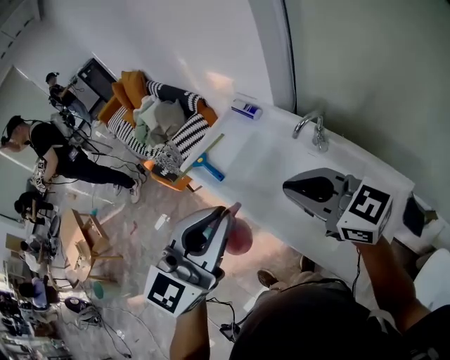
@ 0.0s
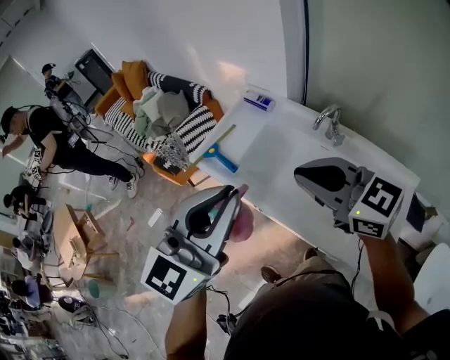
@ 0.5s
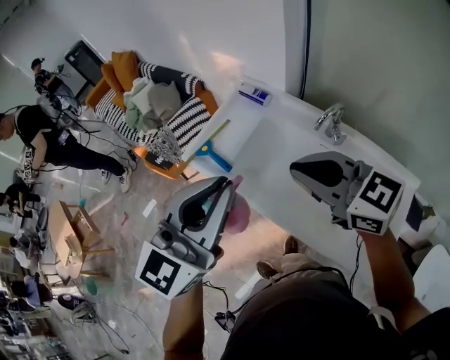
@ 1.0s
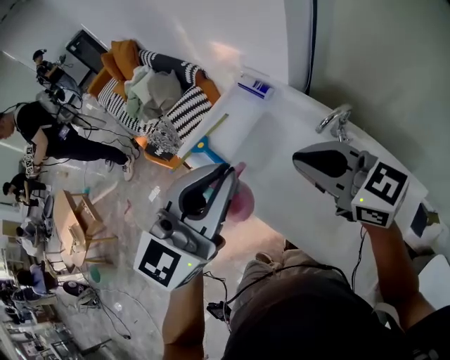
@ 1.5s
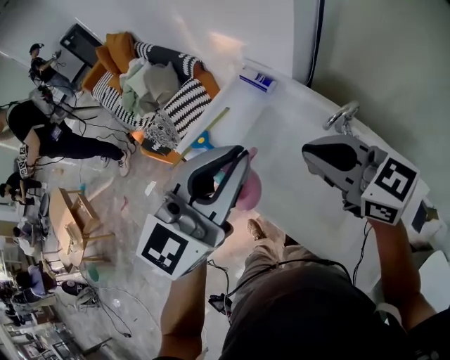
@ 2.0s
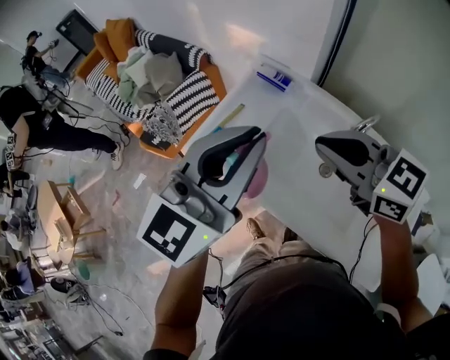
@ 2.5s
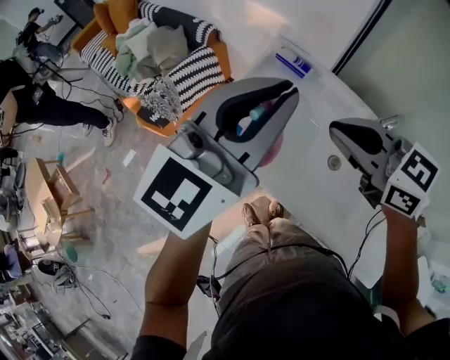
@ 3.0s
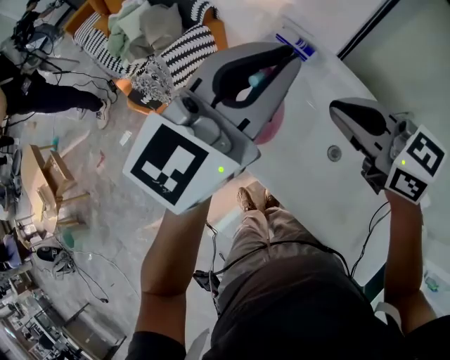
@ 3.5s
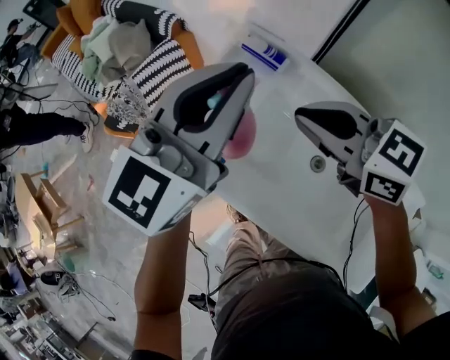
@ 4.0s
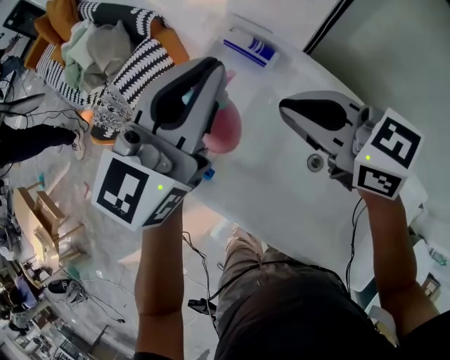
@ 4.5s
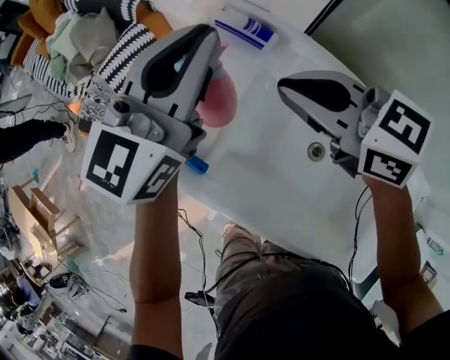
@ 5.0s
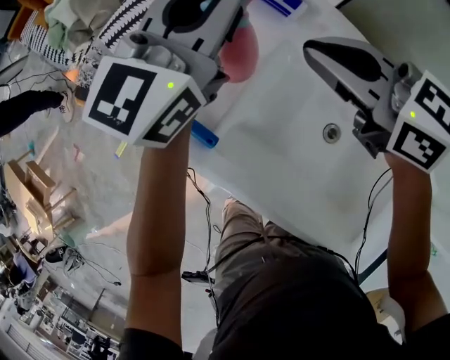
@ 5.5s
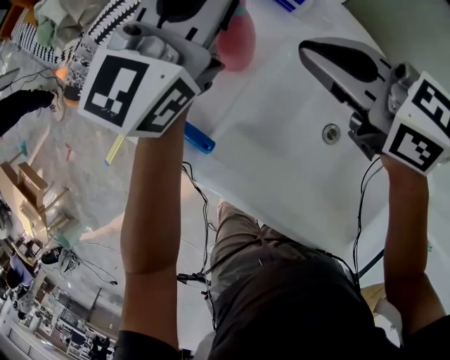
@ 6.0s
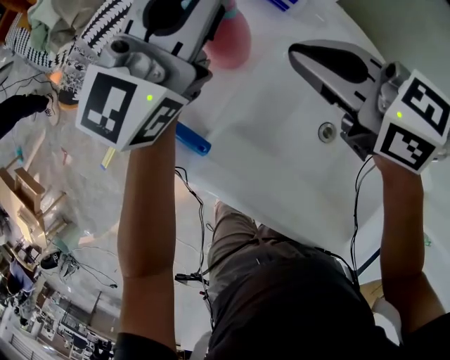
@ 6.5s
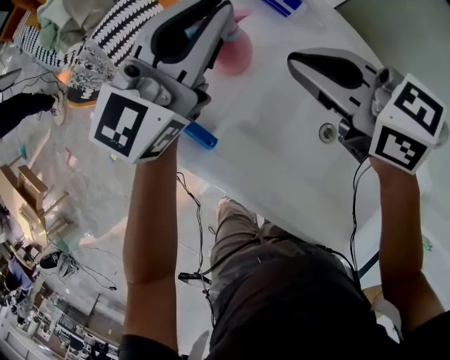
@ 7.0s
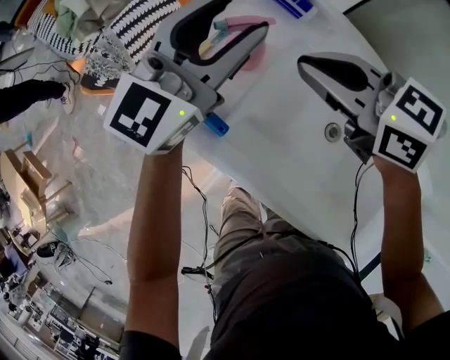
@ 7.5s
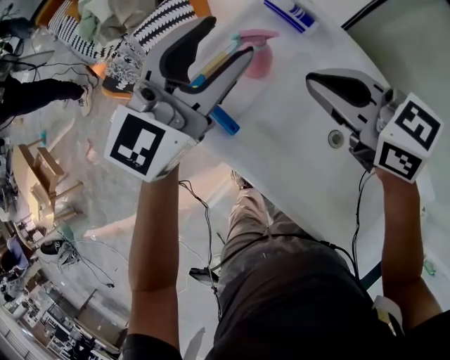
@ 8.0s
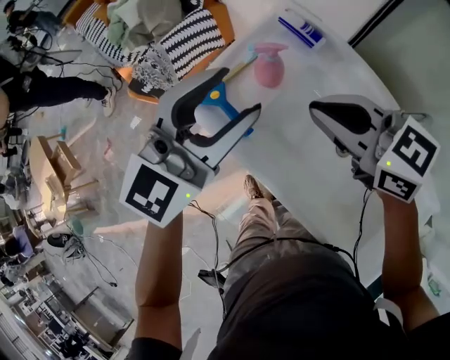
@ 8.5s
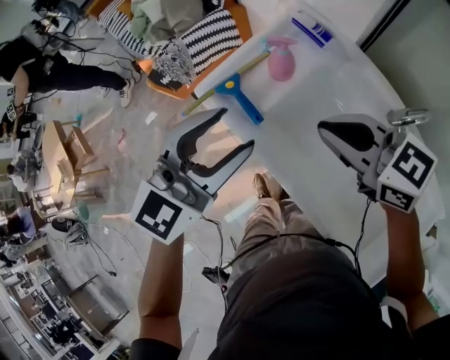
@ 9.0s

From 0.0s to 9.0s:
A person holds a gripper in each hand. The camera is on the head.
From 0.0s to 2.0s: The two grippers go about 15 cm forward.
From 2.0s to 4.5s: Both grippers move forward and downward, approximately 25 cm.
From 4.5s to 7.0s: The left gripper travels downward and forward by some 10 cm; the right gripper is displaced downward by approximately 10 cm.
From 7.0s to 9.0s: The left gripper shifts about 25 cm backward, to the left and upward, turns by roughly 20 degrees, and opens its fingers. Meanwhile the right gripper moves backward and upward, approximately 20 cm.

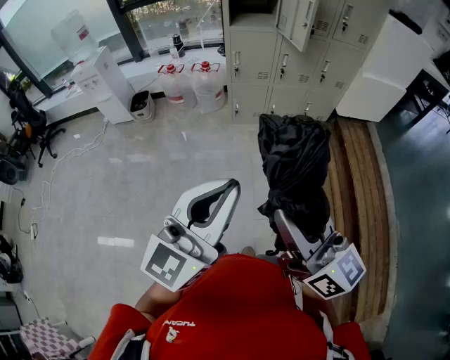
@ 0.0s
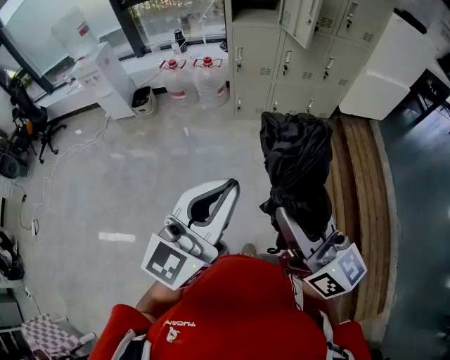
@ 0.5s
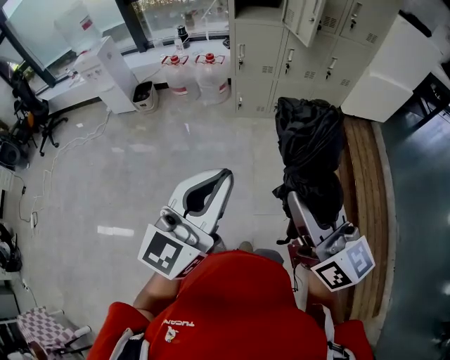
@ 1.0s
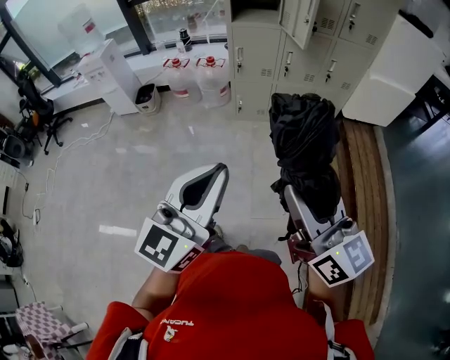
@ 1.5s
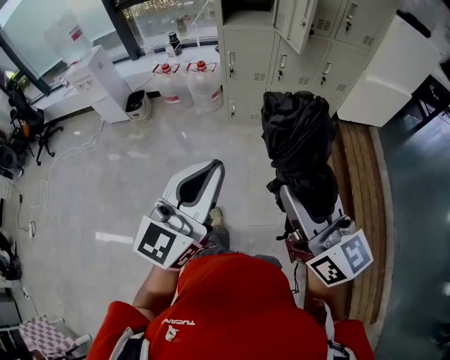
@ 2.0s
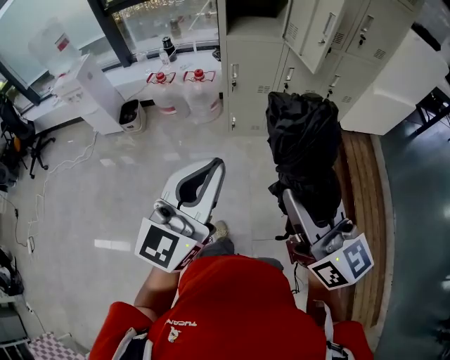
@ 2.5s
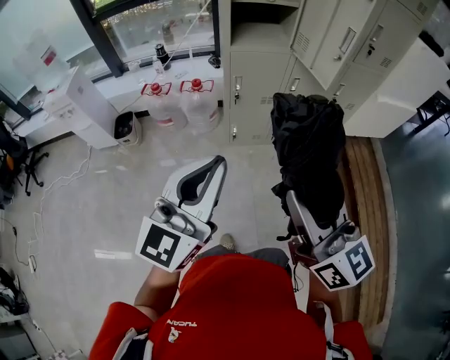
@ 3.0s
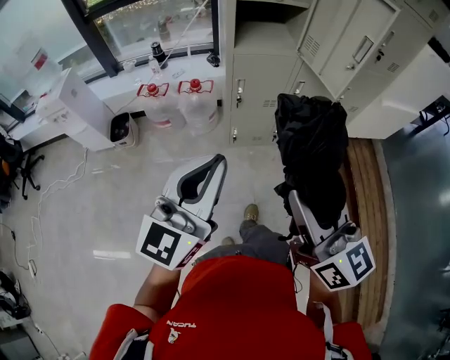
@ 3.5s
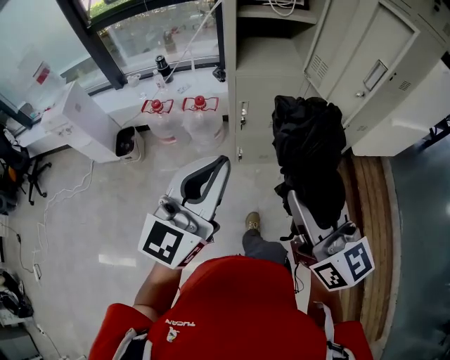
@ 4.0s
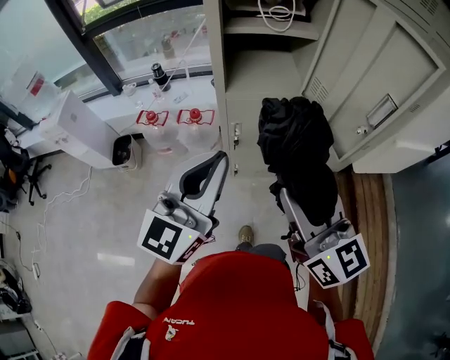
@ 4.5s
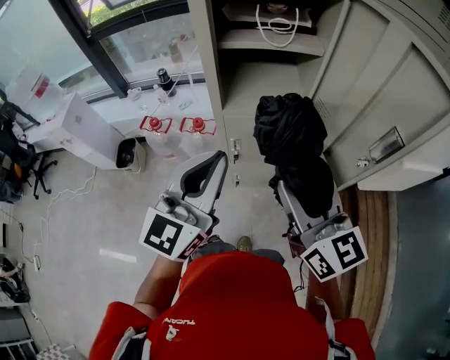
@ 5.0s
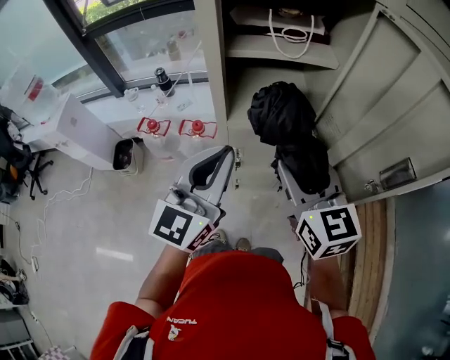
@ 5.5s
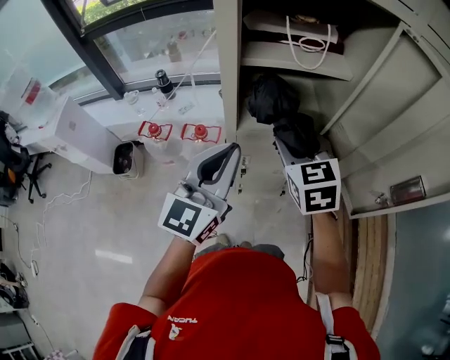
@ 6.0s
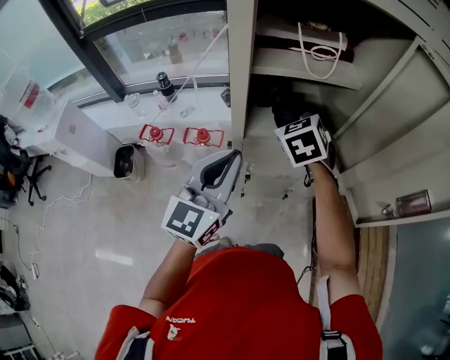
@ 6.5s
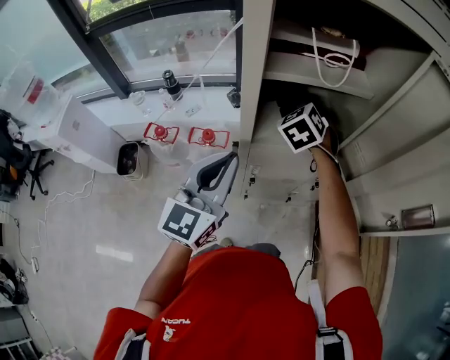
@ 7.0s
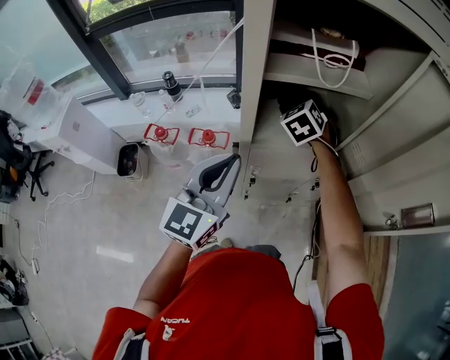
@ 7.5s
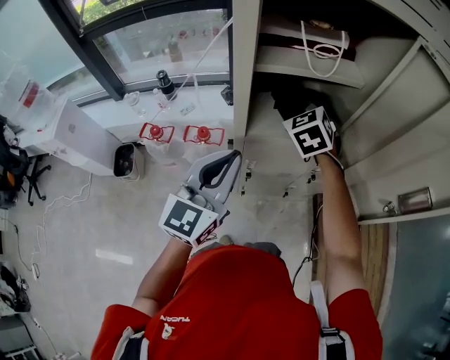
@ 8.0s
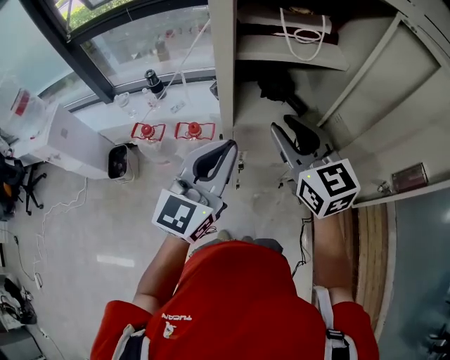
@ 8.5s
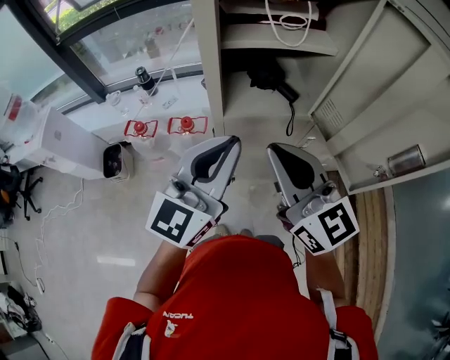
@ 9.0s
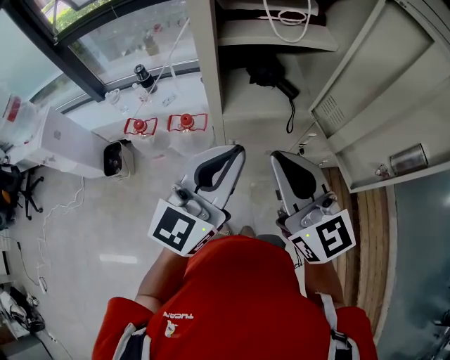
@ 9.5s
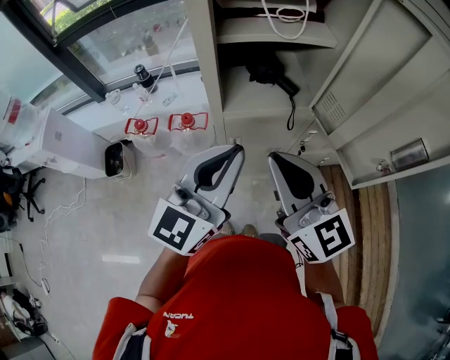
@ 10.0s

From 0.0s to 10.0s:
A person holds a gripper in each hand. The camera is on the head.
From 0.0s to 2.0s: The left gripper goes about 10 cm forward; the right gripper moves forward and to the right, about 10 cm.
From 2.0s to 4.0s: The grippers both shift forward by about 35 cm.
From 4.0s to 6.0s: Both grippers travel together forward, roughly 35 cm. The right gripper tips its fingers downward by roughly 30 degrees.
From 6.0s to 8.0s: The right gripper shifts some 15 cm forward, and turns by some 20 degrees.
From 8.0s to 10.0s: The right gripper is displaced backward by roughly 25 cm, tilts its fingers approximately 30 degrees upward, and closes. Meanwhile the left gripper moves backward and to the right, roughly 10 cm.

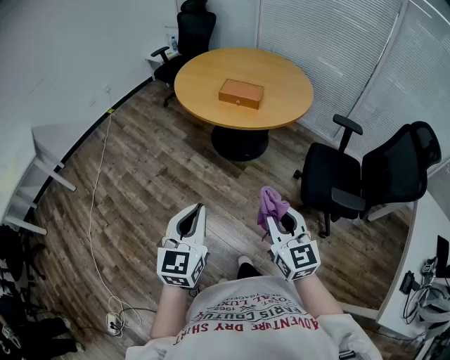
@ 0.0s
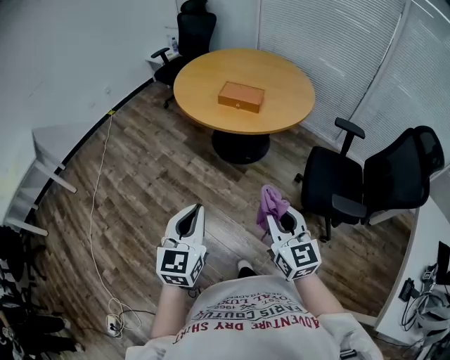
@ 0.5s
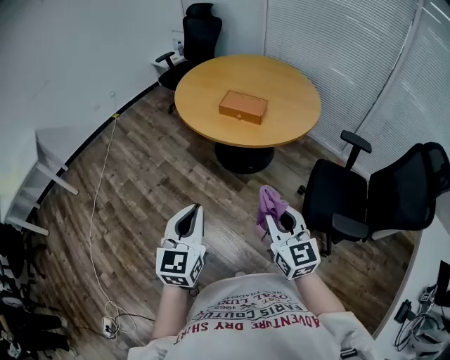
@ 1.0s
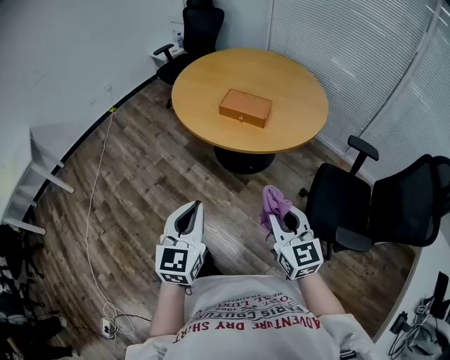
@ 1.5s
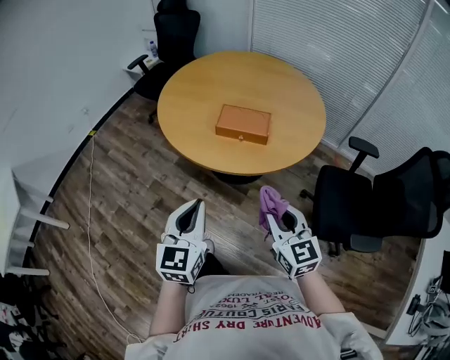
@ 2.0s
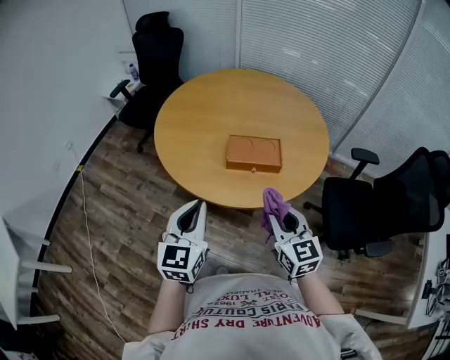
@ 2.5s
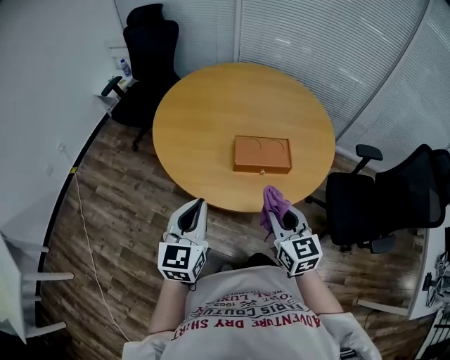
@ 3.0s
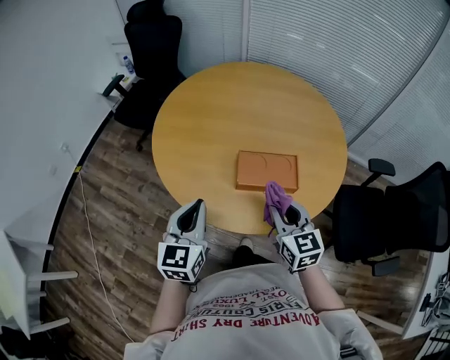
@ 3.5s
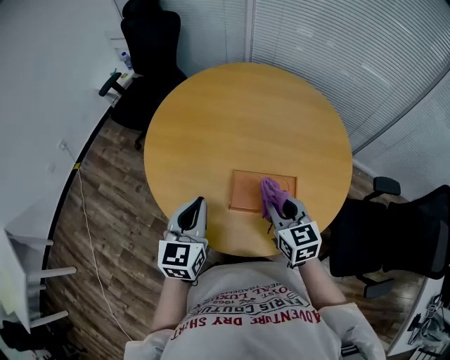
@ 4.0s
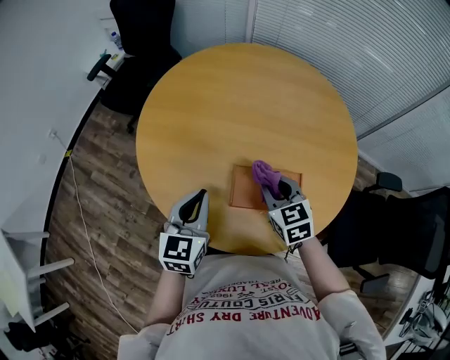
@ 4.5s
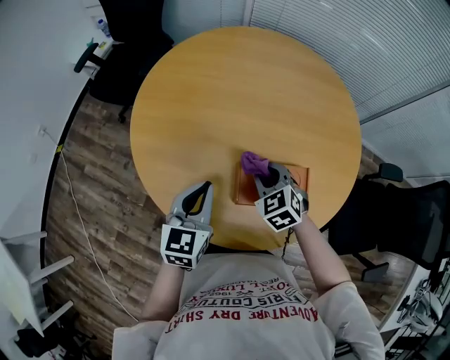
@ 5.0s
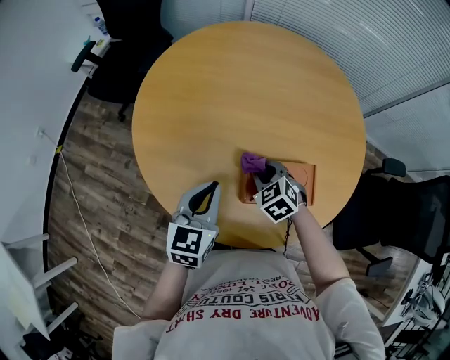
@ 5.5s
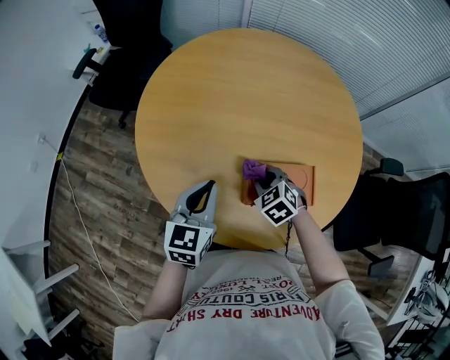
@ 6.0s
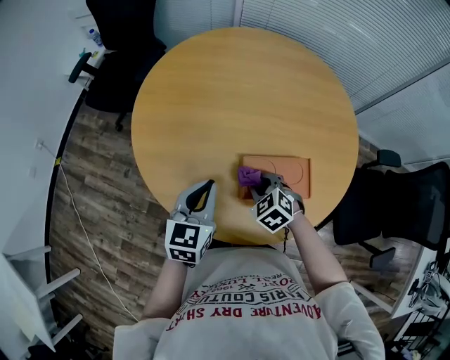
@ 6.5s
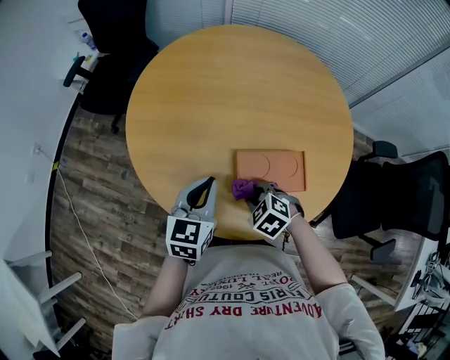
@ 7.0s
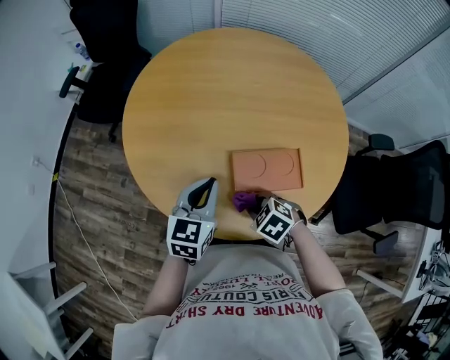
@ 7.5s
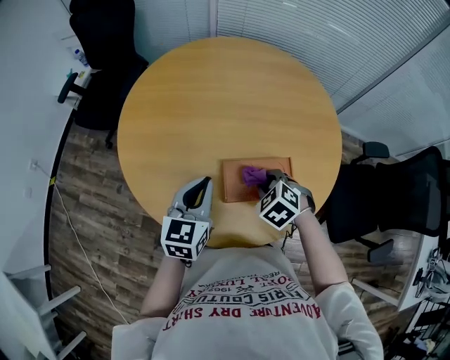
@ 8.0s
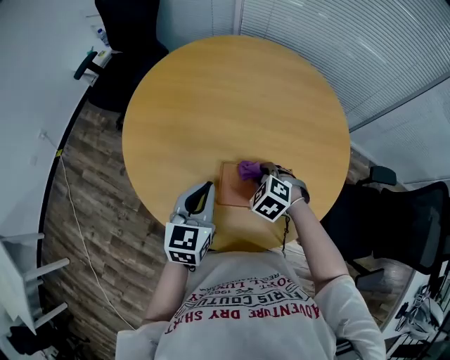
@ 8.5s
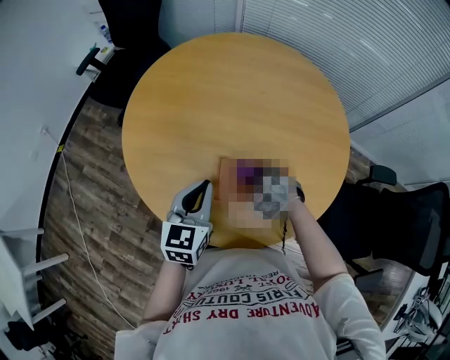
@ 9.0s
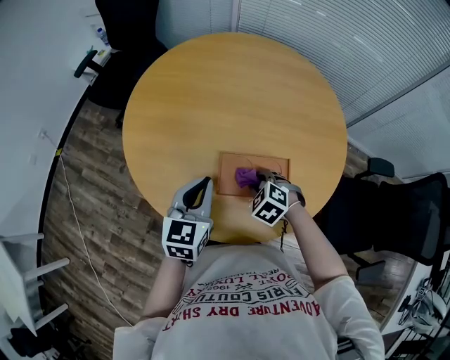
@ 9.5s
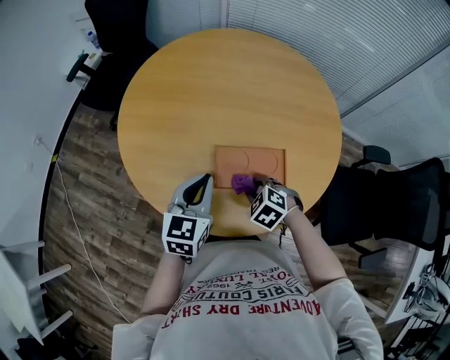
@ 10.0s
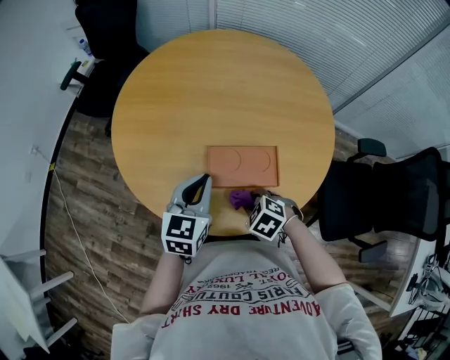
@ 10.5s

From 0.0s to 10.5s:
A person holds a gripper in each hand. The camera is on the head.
From 0.0s to 2.0s: Both grippers travel together forward, some 35 cm.
From 2.0s to 4.0s: The two grippers travel together, forward, about 40 cm.
From 4.0s to 6.5s: The left gripper is displaced forward and downward by some 10 cm, while the right gripper travels downward and to the left by roughly 15 cm, and points its fingers roughly 30 degrees further downward.
From 6.5s to 8.5s: Both grippers move to the right, some 10 cm. The right gripper moves roughly 10 cm backward and comes back.
From 8.5s to 10.5s: The right gripper shifts about 15 cm backward.
